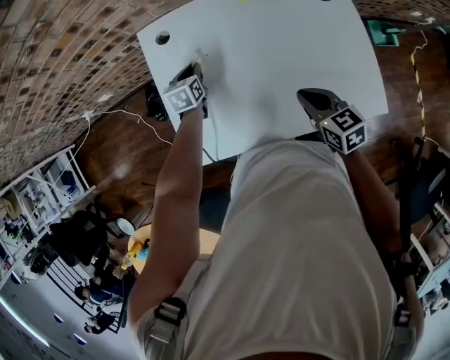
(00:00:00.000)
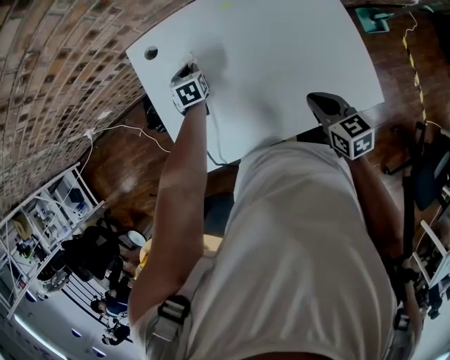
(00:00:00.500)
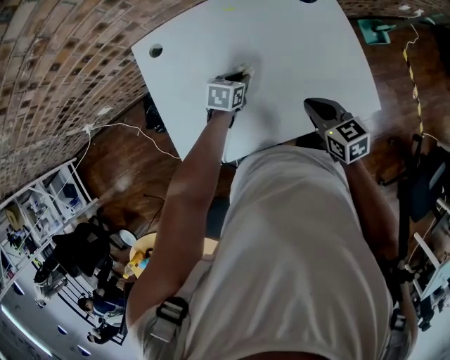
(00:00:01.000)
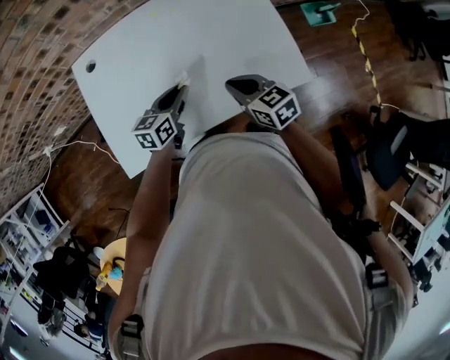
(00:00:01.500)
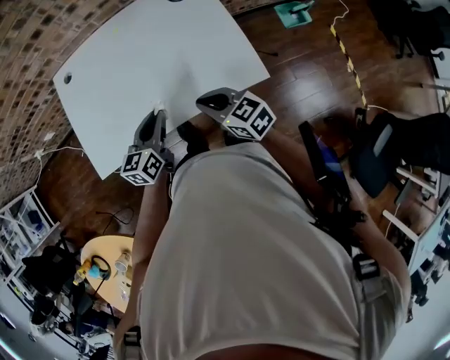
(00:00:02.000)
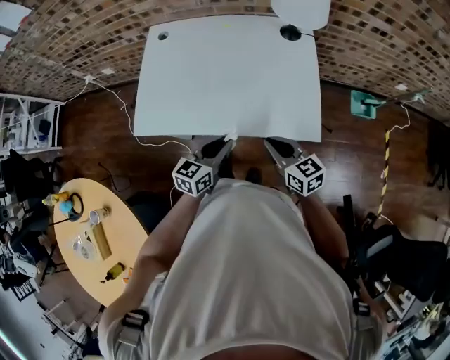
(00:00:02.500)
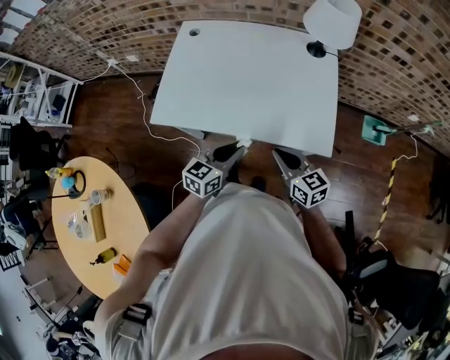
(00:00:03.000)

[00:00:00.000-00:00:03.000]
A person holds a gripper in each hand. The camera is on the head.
00:00:00.000 to 00:00:01.500: The left gripper is displaced to the right and backward by about 25 cm, and rotates approximately 30 degrees. Meanwhile the right gripper shifts some 5 cm to the right.
00:00:01.500 to 00:00:03.000: The two grippers go about 20 cm backward. The right gripper rotates about 20 degrees.

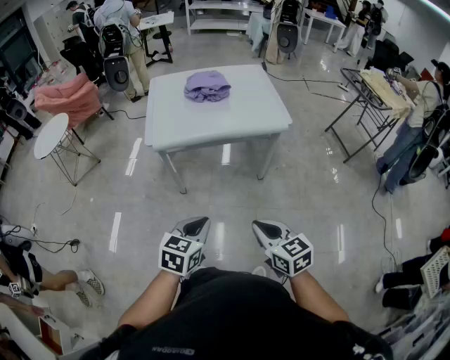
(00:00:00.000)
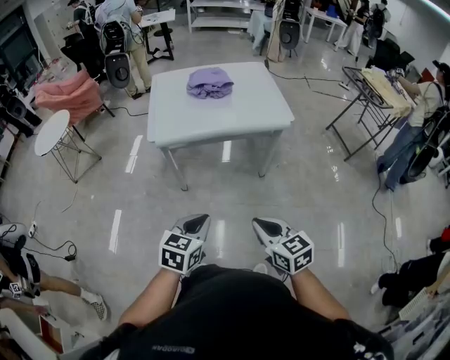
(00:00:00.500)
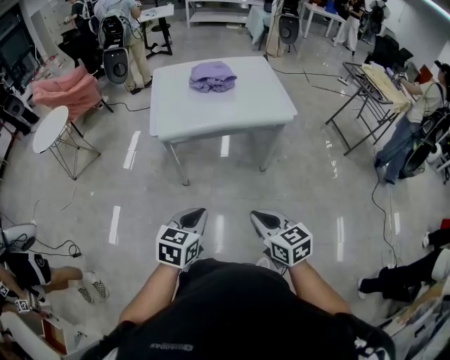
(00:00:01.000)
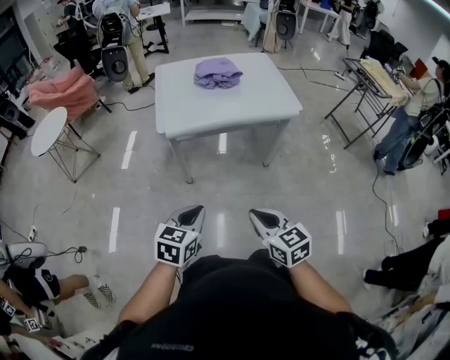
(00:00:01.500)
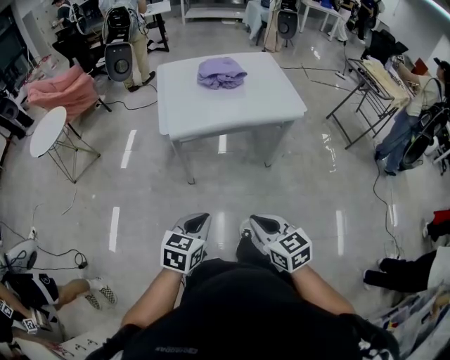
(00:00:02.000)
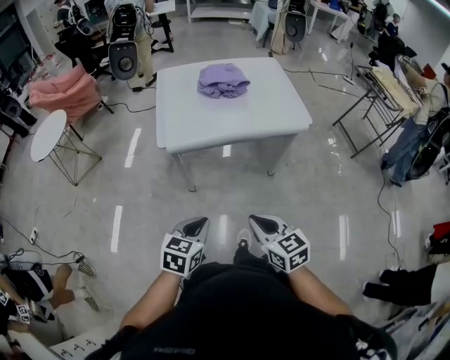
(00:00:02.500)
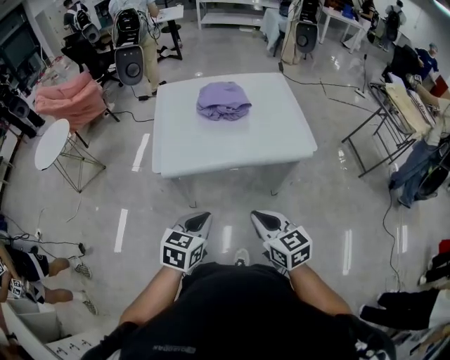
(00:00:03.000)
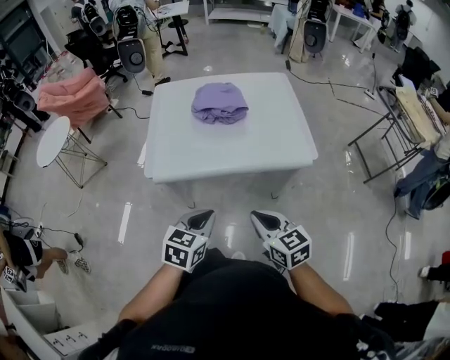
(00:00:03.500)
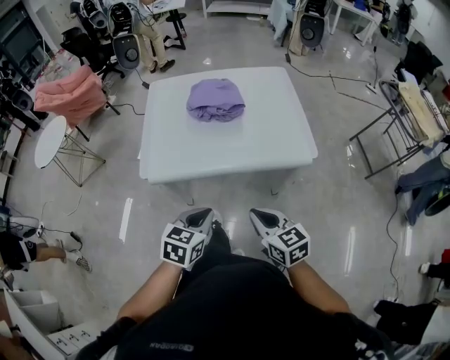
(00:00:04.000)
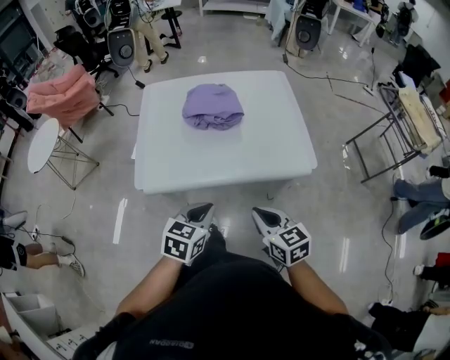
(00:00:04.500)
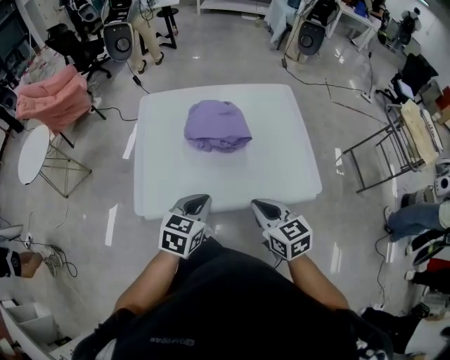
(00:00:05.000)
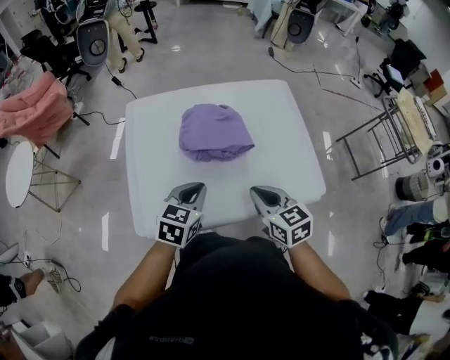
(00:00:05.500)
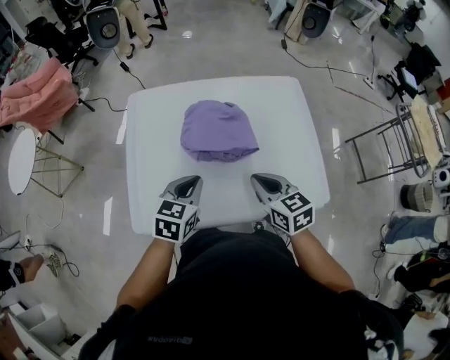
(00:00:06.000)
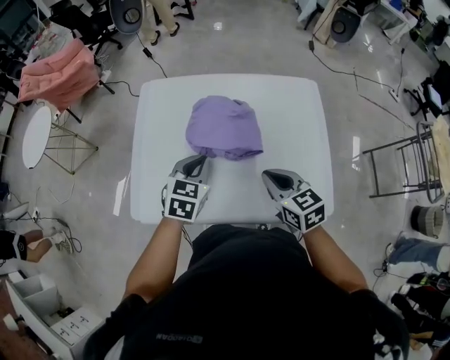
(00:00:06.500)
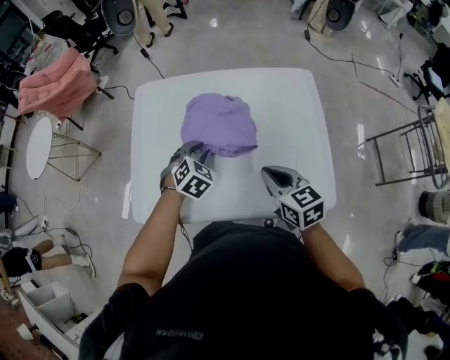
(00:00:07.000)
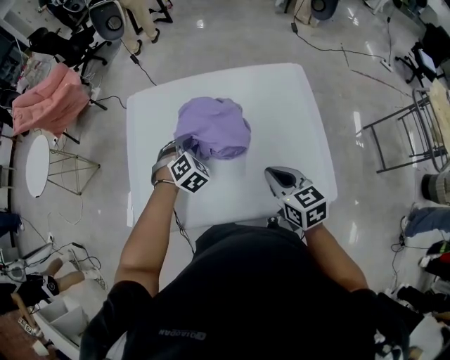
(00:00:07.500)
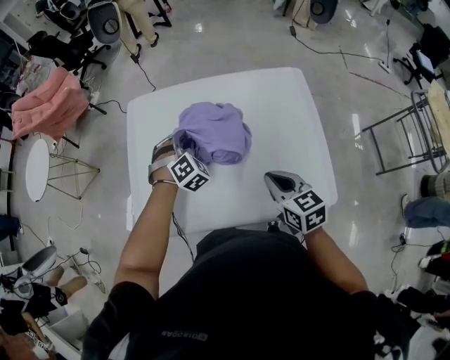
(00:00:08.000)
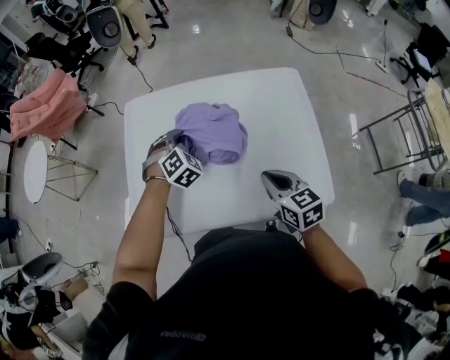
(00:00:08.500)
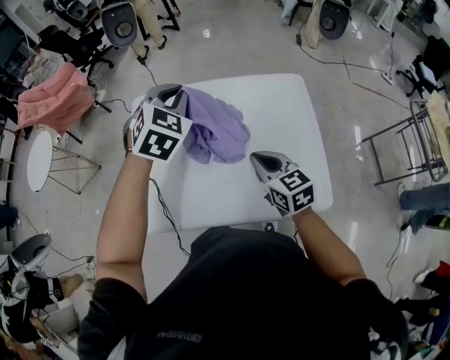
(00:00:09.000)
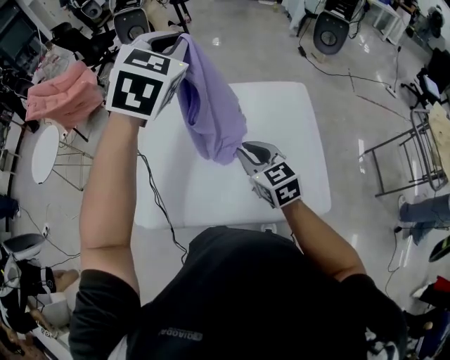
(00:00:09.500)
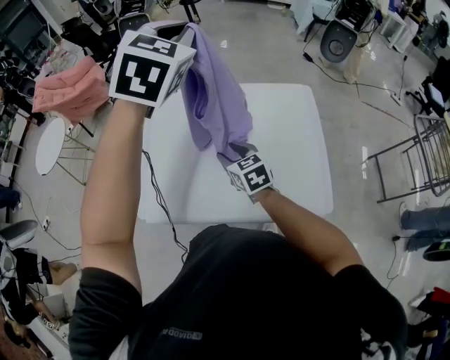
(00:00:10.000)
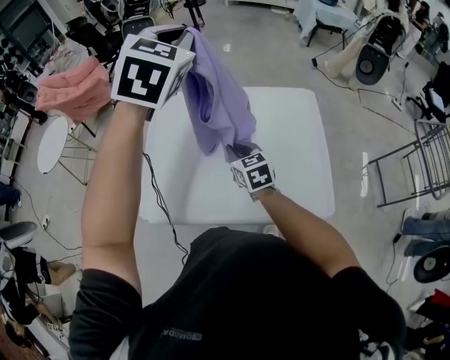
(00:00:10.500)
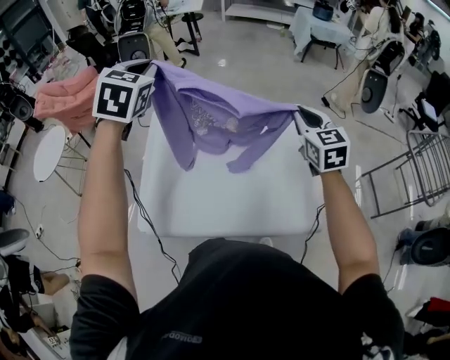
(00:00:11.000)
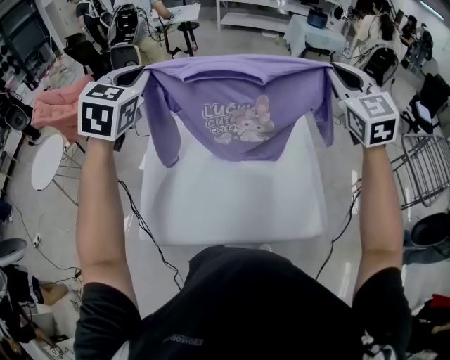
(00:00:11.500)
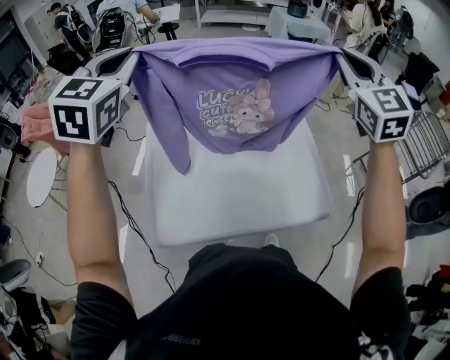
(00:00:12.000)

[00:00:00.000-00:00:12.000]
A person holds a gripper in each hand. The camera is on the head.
00:00:00.000 to 00:00:02.000: The grippers both shift to the left by about 15 cm.
00:00:02.000 to 00:00:04.000: Both grippers travel together forward and to the right, roughly 30 cm.
00:00:04.000 to 00:00:06.000: Both grippers travel together forward, some 35 cm.
00:00:06.000 to 00:00:08.000: The right gripper is displaced to the right by roughly 5 cm. Meanwhile the left gripper moves forward, about 15 cm, rotates around the line of its fingers by roughly 50 degrees, clockwise from behind, and opens up.
00:00:08.000 to 00:00:10.000: The right gripper travels to the left and forward by roughly 15 cm, and opens its fingers. The left gripper is displaced upward by about 40 cm, swivels approximately 40 degrees, and closes.
00:00:10.000 to 00:00:12.000: The right gripper moves upward and to the right, some 40 cm, points its fingers some 30 degrees further upward, and closes up, while the left gripper shifts approximately 20 cm to the left.

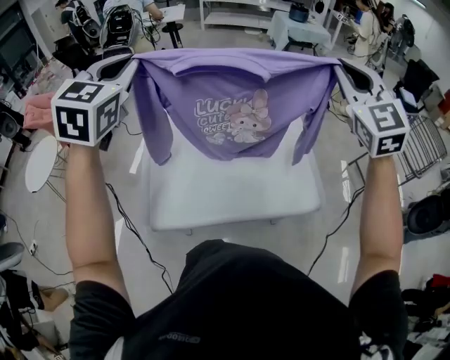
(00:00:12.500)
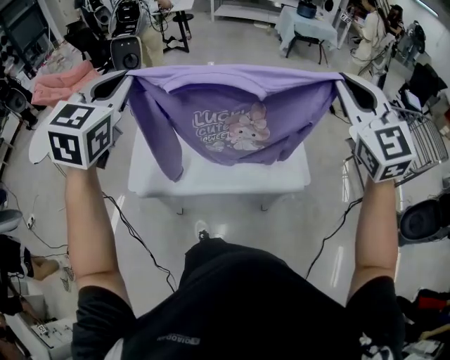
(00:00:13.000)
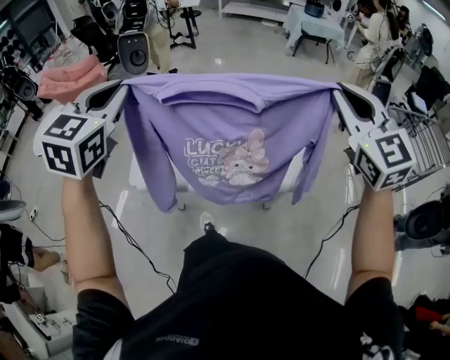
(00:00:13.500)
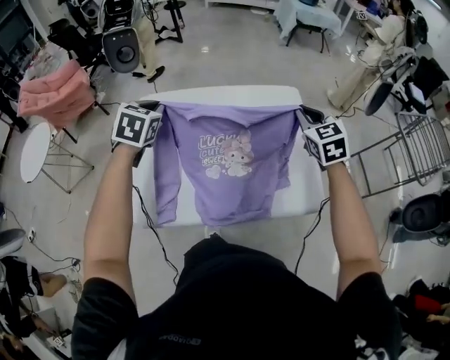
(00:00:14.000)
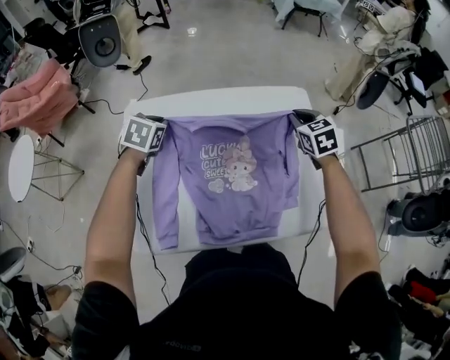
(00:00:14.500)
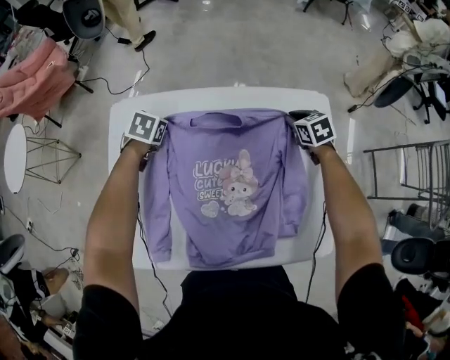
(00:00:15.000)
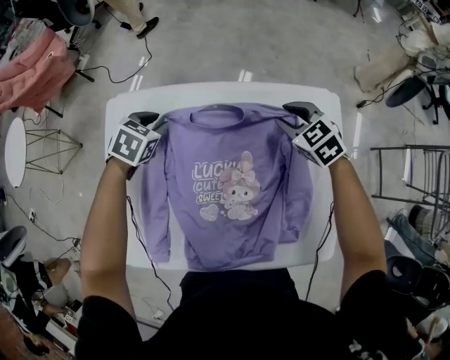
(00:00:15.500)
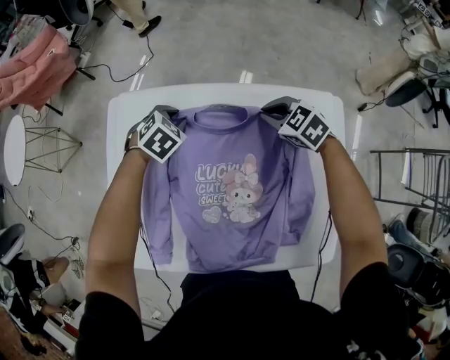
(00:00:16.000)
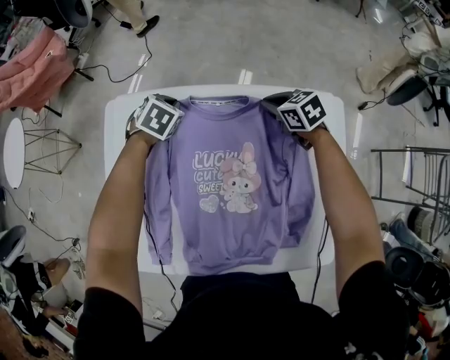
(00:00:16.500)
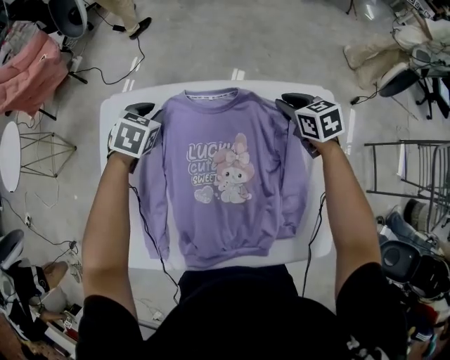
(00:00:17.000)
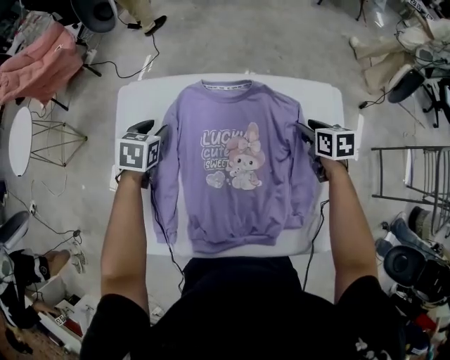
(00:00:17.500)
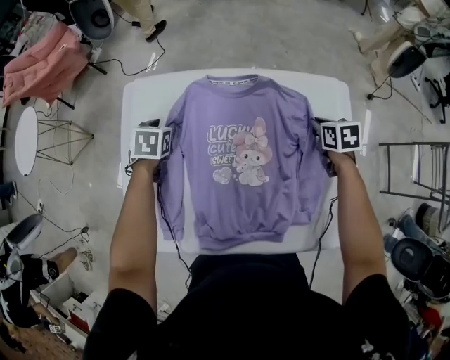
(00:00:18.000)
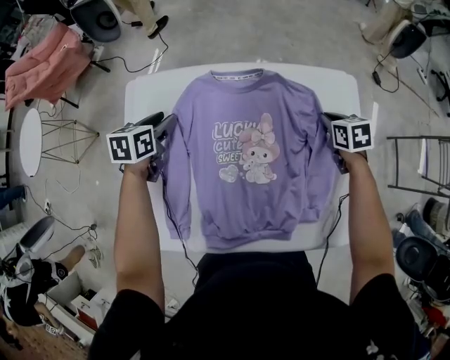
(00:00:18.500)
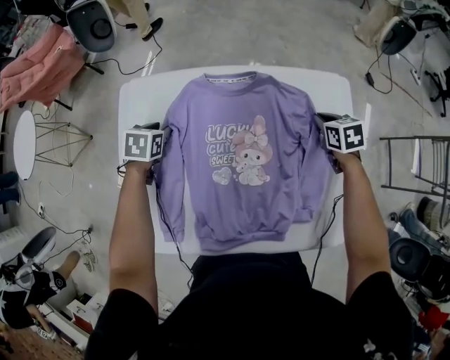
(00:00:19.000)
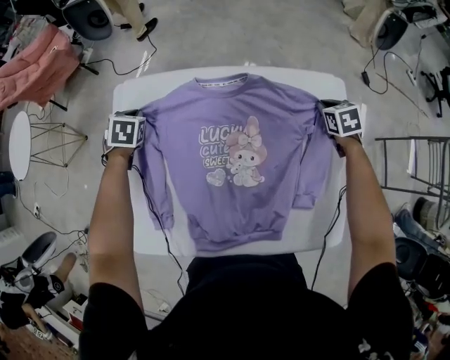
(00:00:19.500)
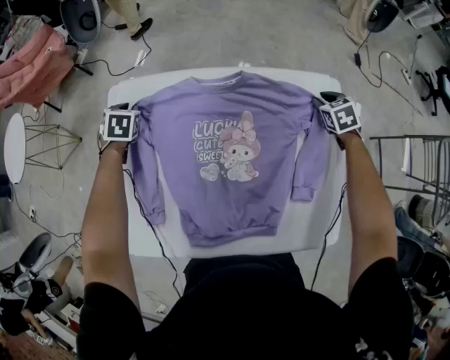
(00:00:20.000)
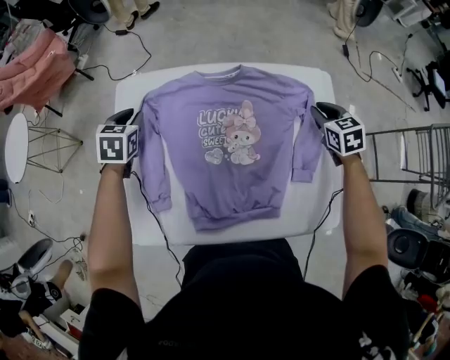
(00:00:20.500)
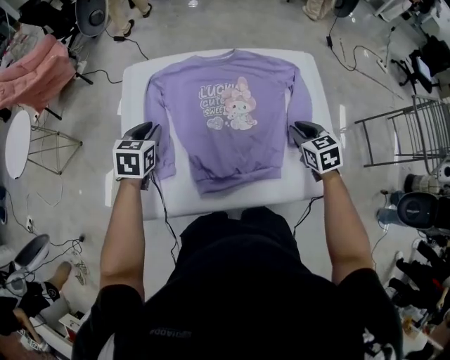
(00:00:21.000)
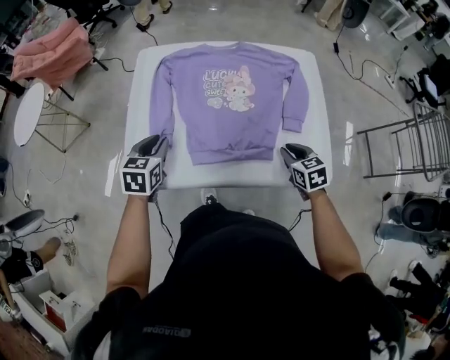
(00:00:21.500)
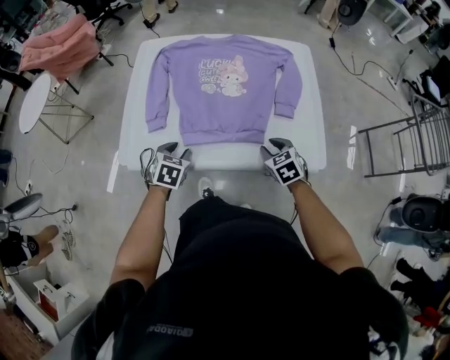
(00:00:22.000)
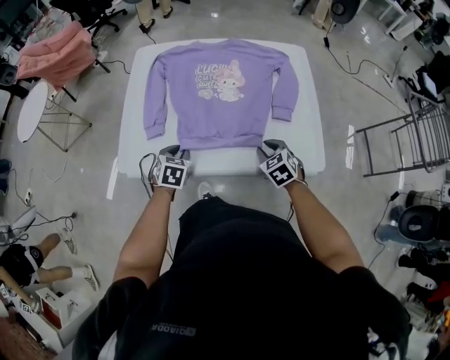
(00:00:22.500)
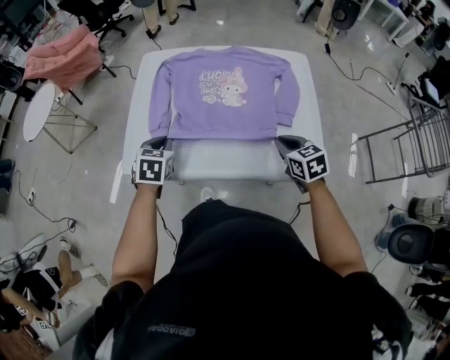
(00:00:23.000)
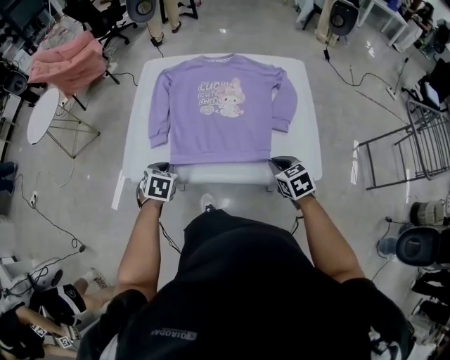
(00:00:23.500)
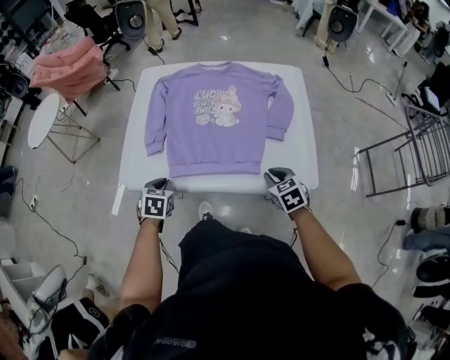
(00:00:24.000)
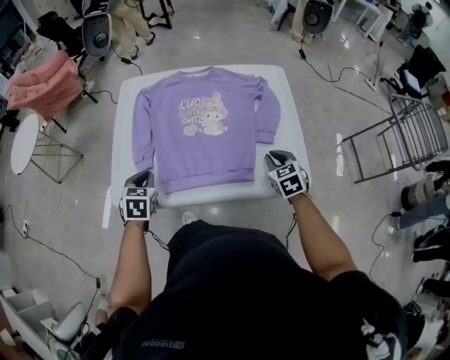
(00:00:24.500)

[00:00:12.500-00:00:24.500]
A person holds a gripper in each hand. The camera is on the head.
00:00:12.500 to 00:00:14.500: The right gripper heads downward and forward, covering roughly 40 cm, and tilts its fingers roughly 40 degrees downward; the left gripper heads downward, covering about 40 cm, and points its fingers approximately 40 degrees further downward.
00:00:14.500 to 00:00:16.500: The left gripper shifts by about 20 cm, and opens, then closes once more. The right gripper moves up and down over about 15 cm, changing direction 2 times, rotates about 30 degrees, and opens, then closes again.
00:00:16.500 to 00:00:18.500: The left gripper travels backward and to the left by roughly 15 cm, turns by approximately 40 degrees, and opens up, while the right gripper shifts about 15 cm backward and to the right, turns by roughly 30 degrees, and opens, then closes again.
00:00:18.500 to 00:00:20.500: The left gripper moves about 5 cm, and turns by roughly 20 degrees, while the right gripper moves upward, some 10 cm.
00:00:20.500 to 00:00:22.500: The right gripper heads backward and to the left, covering roughly 35 cm. The left gripper shifts about 35 cm backward.
00:00:22.500 to 00:00:24.500: The left gripper goes up and down, about 10 cm each way, reversing 2 times. Meanwhile the right gripper is displaced to the right and upward by some 10 cm.
